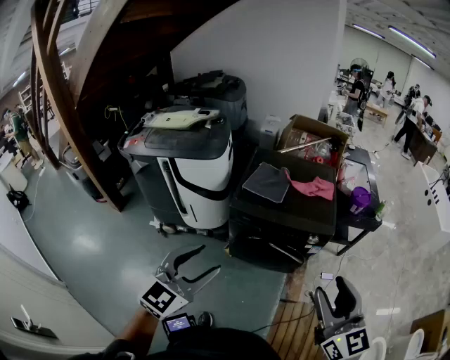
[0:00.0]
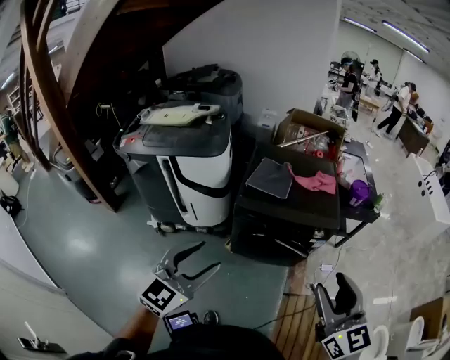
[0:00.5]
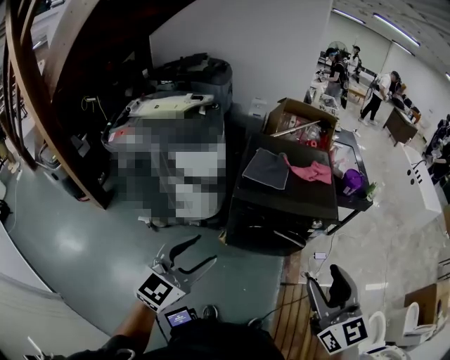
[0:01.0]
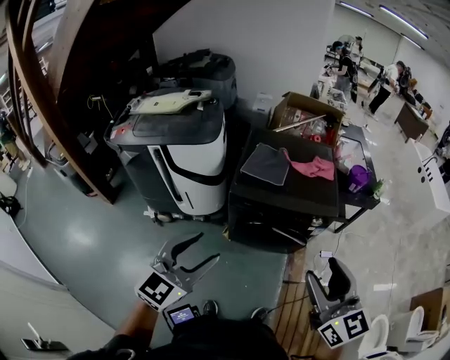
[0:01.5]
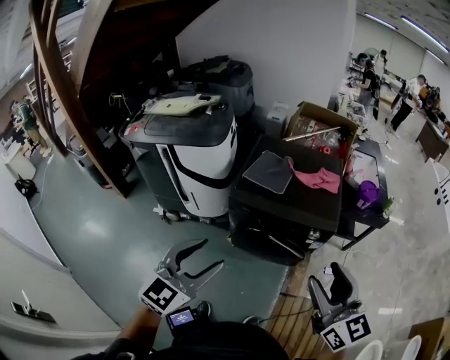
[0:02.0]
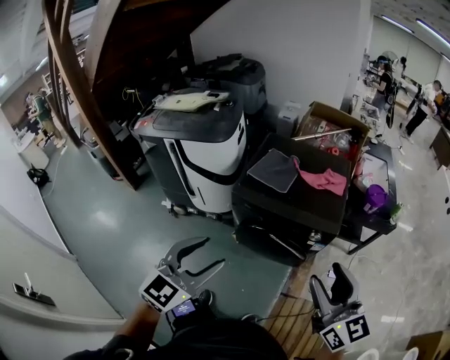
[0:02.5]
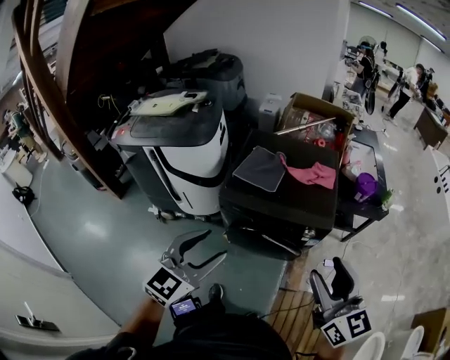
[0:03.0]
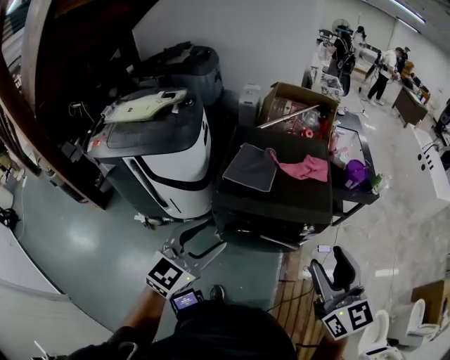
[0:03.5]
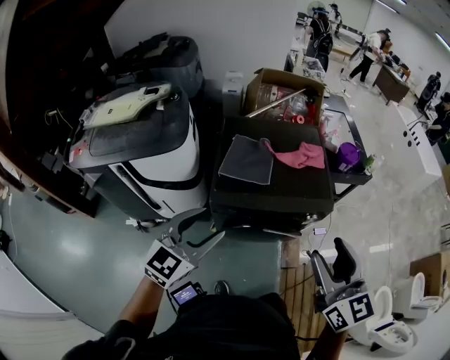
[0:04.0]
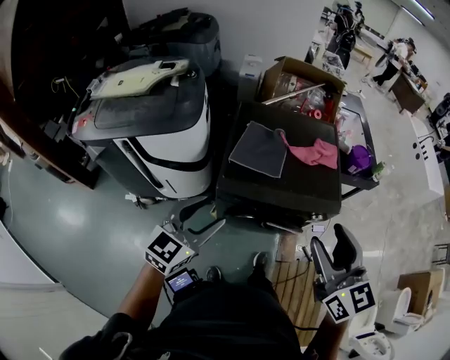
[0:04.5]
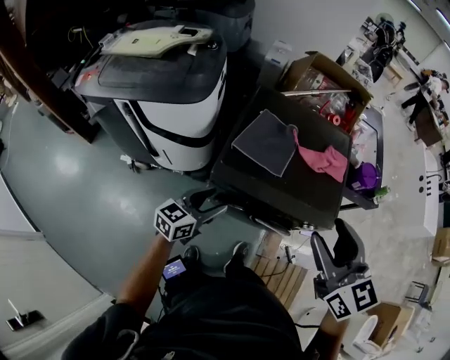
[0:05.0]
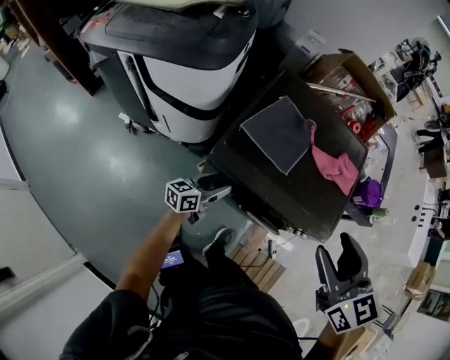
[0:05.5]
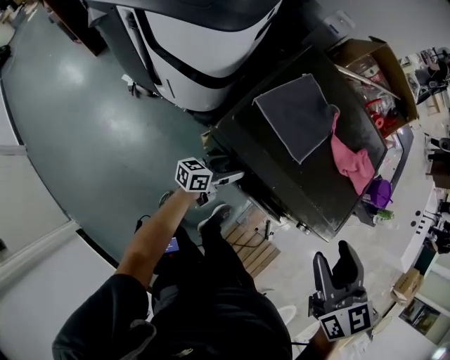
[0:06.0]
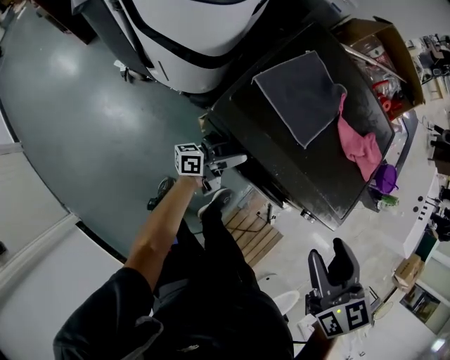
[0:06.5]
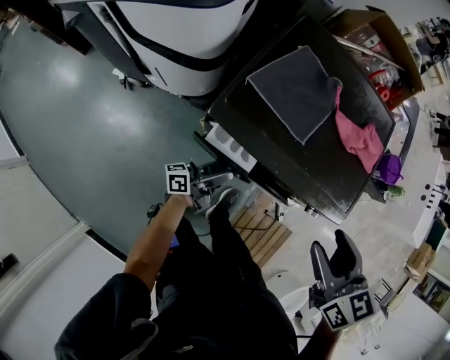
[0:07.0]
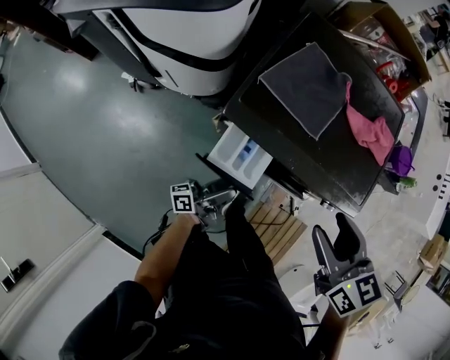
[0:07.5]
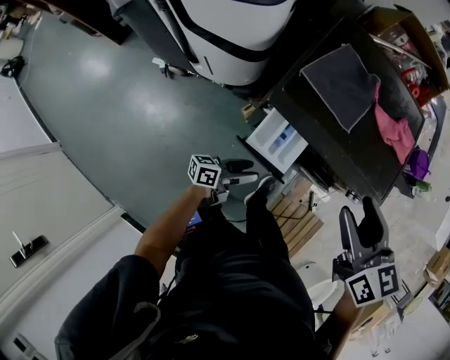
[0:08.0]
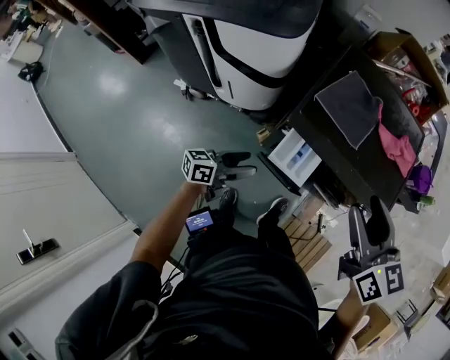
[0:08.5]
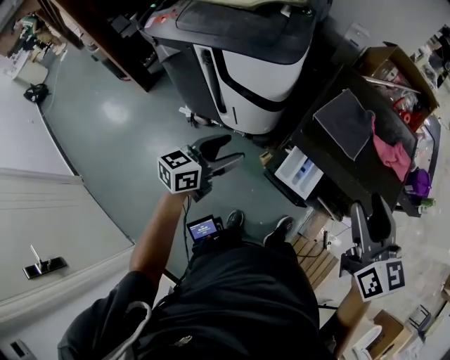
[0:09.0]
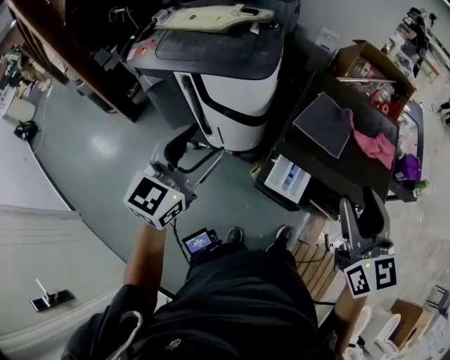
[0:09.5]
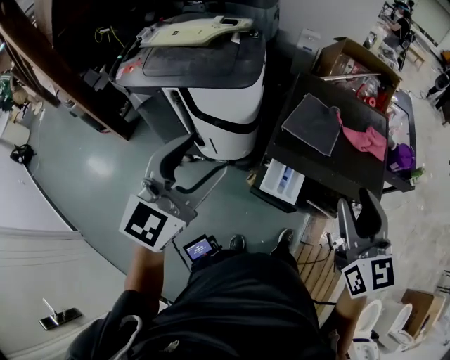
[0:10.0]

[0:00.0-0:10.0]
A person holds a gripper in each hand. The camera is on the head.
0:00.0 to 0:02.0: The right gripper shifts about 5 cm forward, and travels to the left and back again, about 15 cm each way, while the left gripper travels to the left and back again, some 10 cm each way.
0:02.0 to 0:04.0: The right gripper goes some 15 cm forward and to the left. The left gripper moves forward, approximately 20 cm.
0:04.0 to 0:06.0: The left gripper heads downward, covering about 40 cm, and rolls counterclockwise, seen from behind, by about 60 degrees, while the right gripper is displaced forward and downward by approximately 25 cm, and rotates roughly 40 degrees.
0:06.0 to 0:08.0: The left gripper is displaced backward by about 15 cm; the right gripper shifts about 10 cm to the left.
0:08.0 to 0:10.0: The left gripper heads upward, covering roughly 50 cm, and rolls clockwise, seen from behind, by approximately 80 degrees; the right gripper travels upward and backward by about 15 cm, and swivels about 30 degrees.

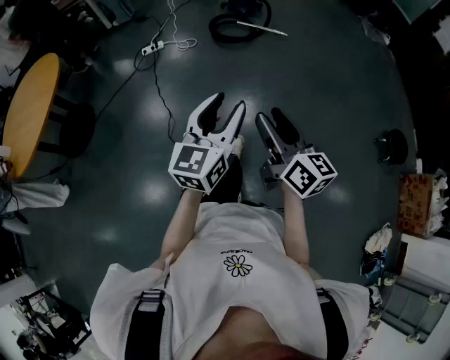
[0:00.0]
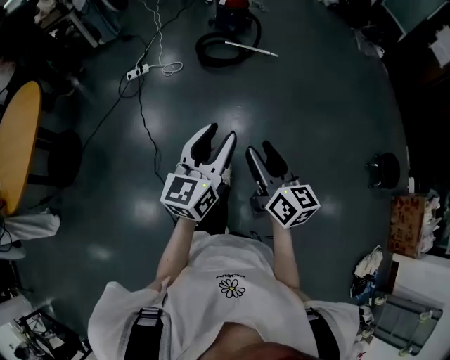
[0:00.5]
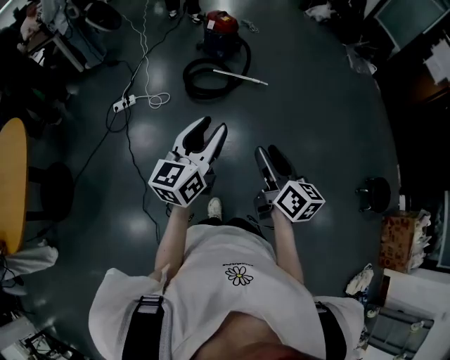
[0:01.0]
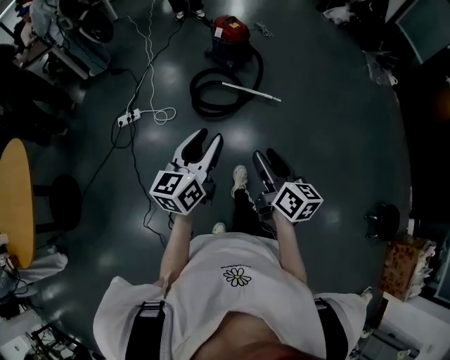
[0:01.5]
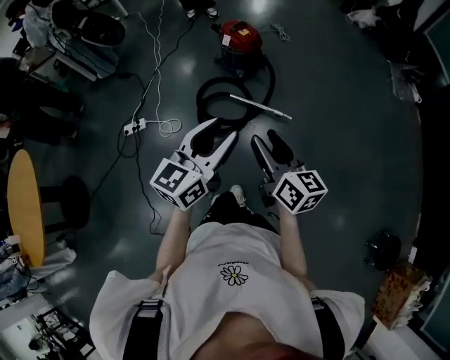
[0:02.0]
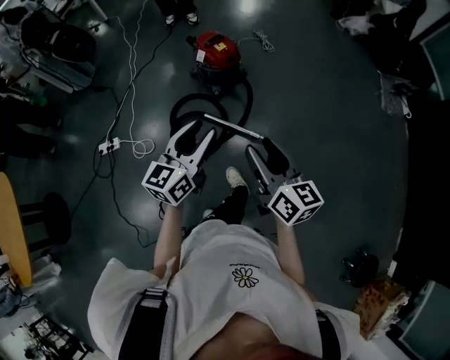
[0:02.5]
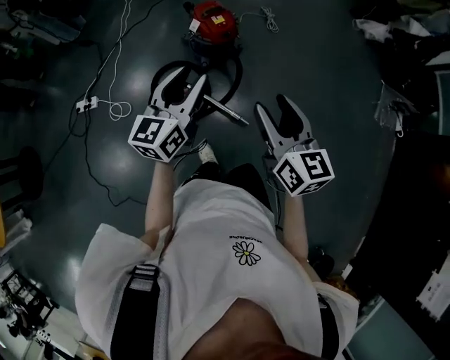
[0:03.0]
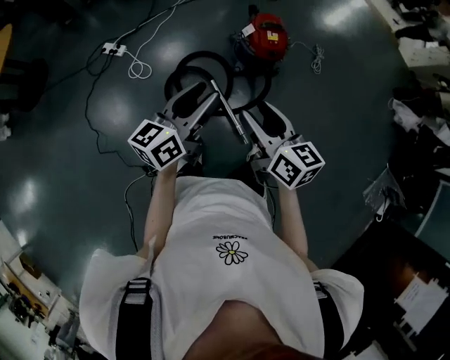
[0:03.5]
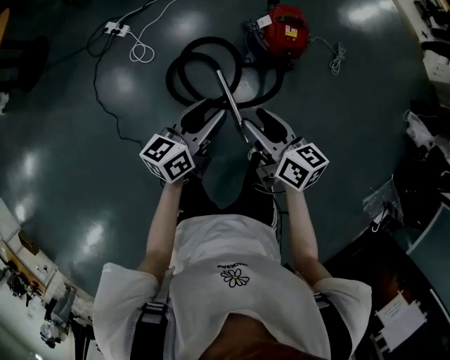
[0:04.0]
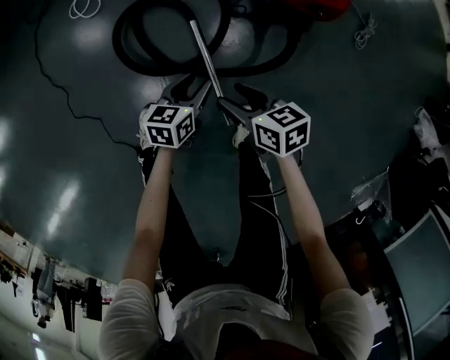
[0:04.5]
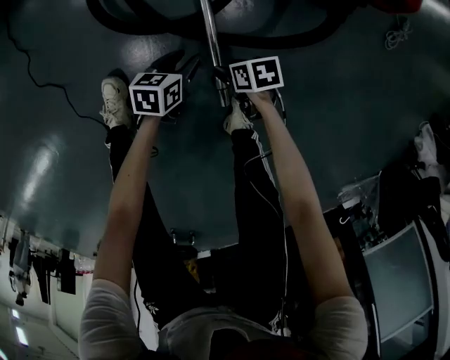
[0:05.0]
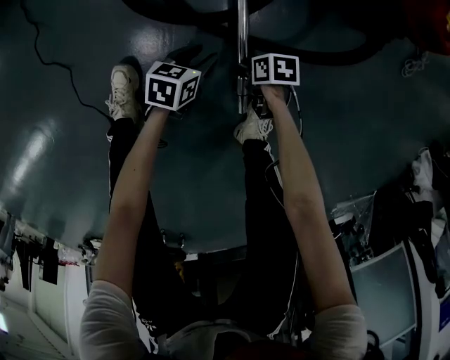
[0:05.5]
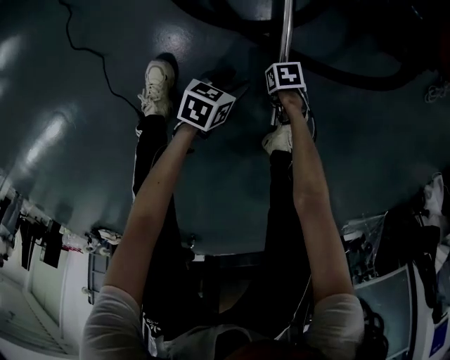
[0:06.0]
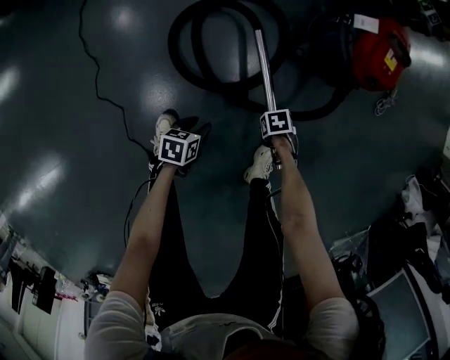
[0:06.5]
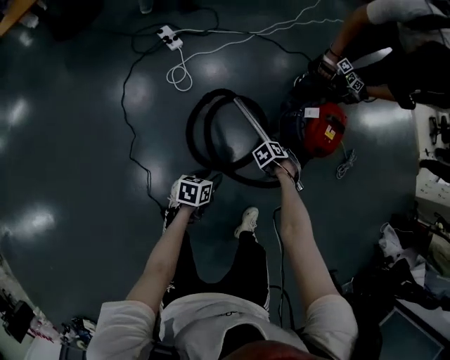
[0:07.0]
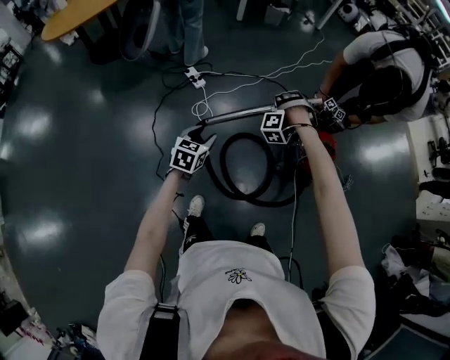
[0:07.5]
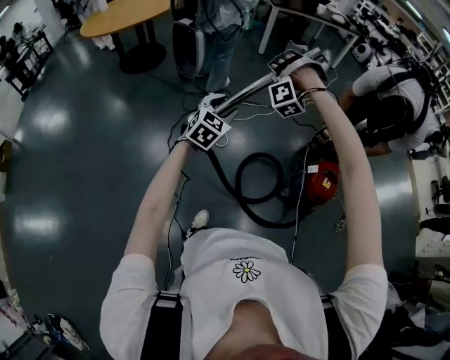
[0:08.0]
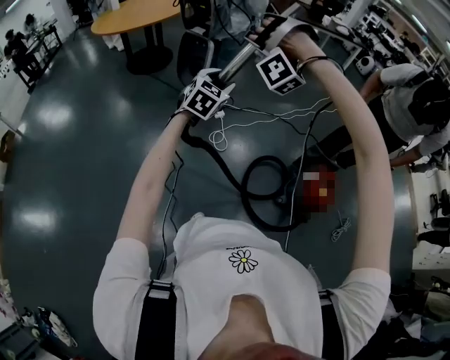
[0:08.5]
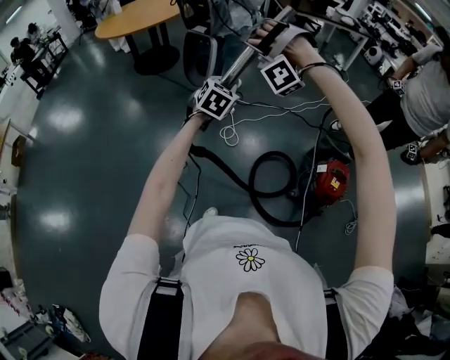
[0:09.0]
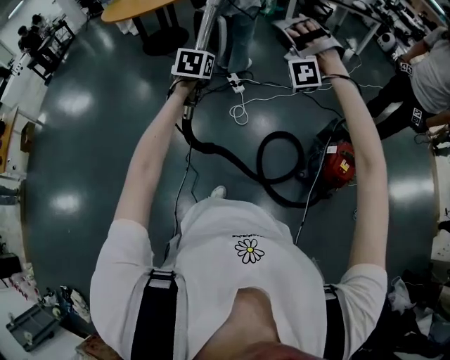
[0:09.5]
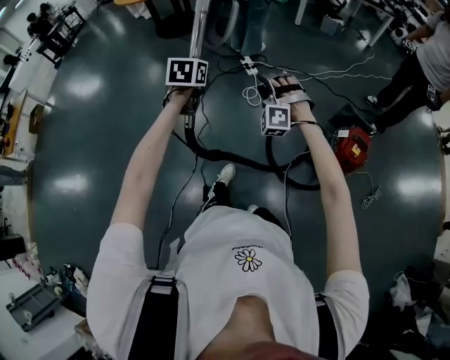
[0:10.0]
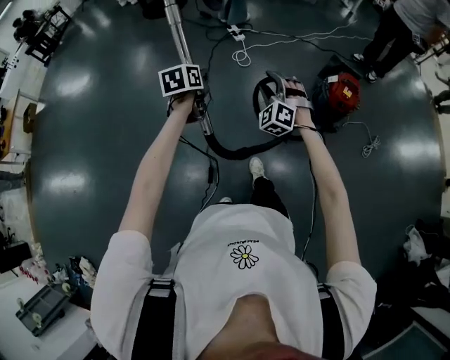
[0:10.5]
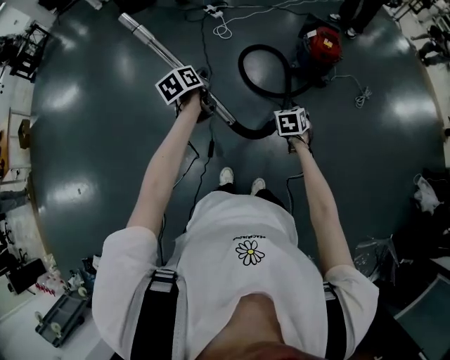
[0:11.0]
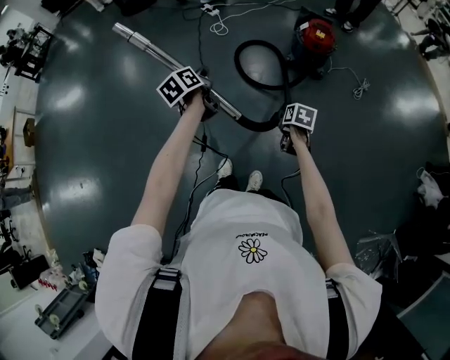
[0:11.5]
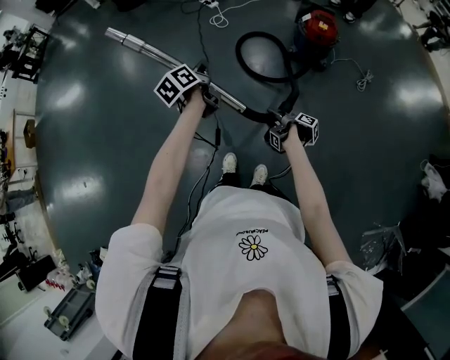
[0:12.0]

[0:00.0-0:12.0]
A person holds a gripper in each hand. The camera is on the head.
0:00.0 to 0:02.0: Both grippers are carried forward, about 90 cm.
0:02.0 to 0:04.0: The right gripper ends up approximately 40 cm from where it was, and changes its angle by approximately 60 degrees; the left gripper moves roughly 40 cm, and turns by approximately 50 degrees.
0:04.0 to 0:06.0: The grippers both shift downward by roughly 80 cm. The left gripper points its fingers roughly 40 degrees further downward. The right gripper points its fingers approximately 50 degrees further downward.
0:06.0 to 0:08.0: The grippers both shift upward by approximately 1 m. The left gripper turns by approximately 70 degrees; the right gripper tilts its fingers roughly 40 degrees upward.
0:08.0 to 0:10.0: The right gripper moves some 30 cm, and rotates approximately 50 degrees, while the left gripper travels upward and back again, about 10 cm each way, rotates approximately 40 degrees, and closes up.
0:10.0 to 0:12.0: The two grippers travel together, backward, approximately 60 cm. The right gripper rotates around the line of its fingers by approximately 160 degrees, counterclockwise from behind. Meanwhile the left gripper twists approximately 40 degrees counterclockwise, seen from behind.

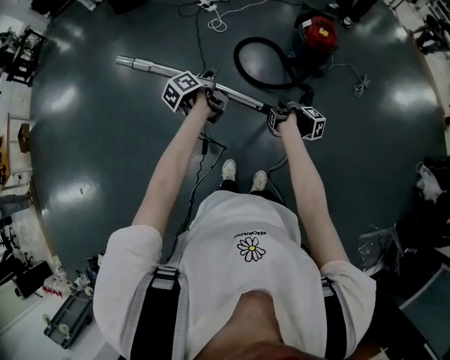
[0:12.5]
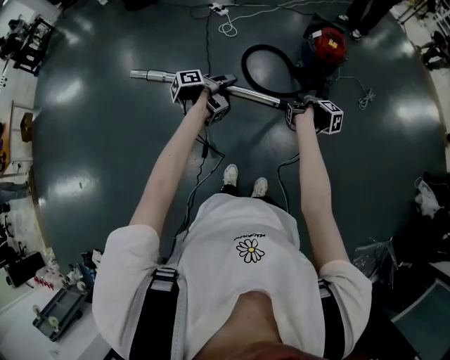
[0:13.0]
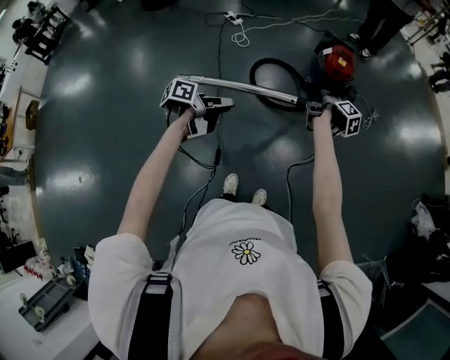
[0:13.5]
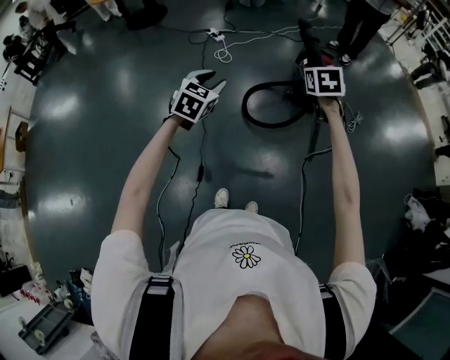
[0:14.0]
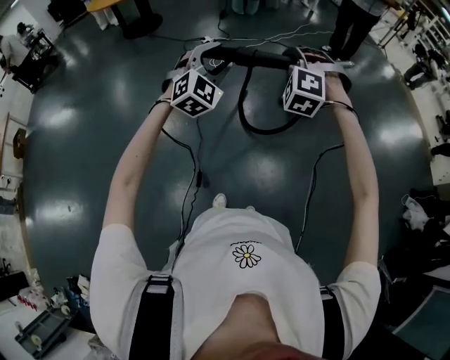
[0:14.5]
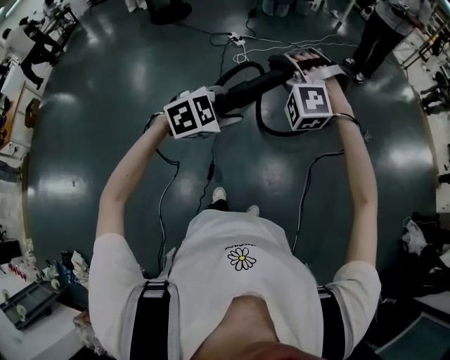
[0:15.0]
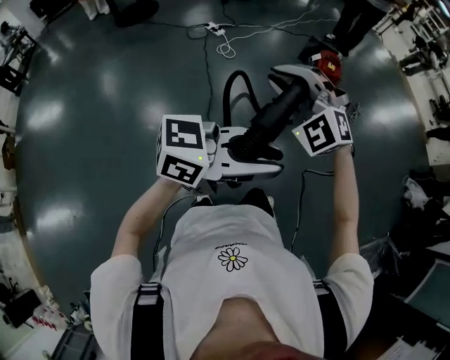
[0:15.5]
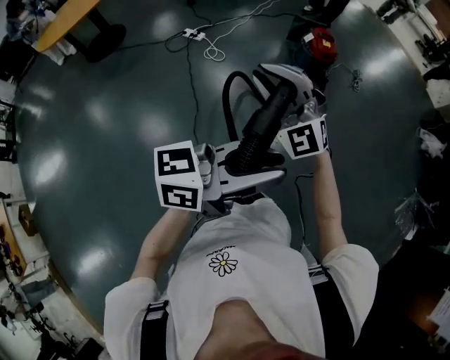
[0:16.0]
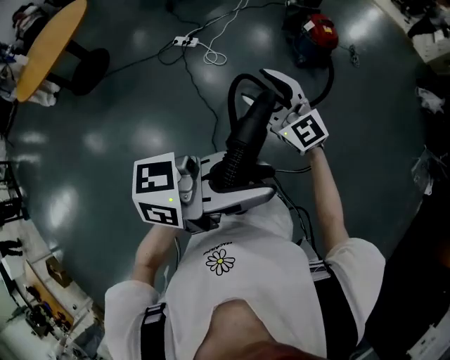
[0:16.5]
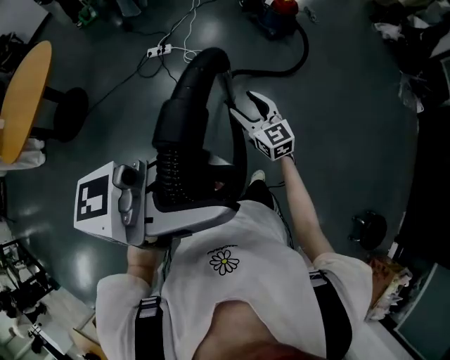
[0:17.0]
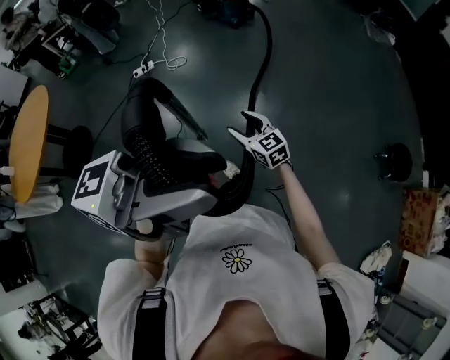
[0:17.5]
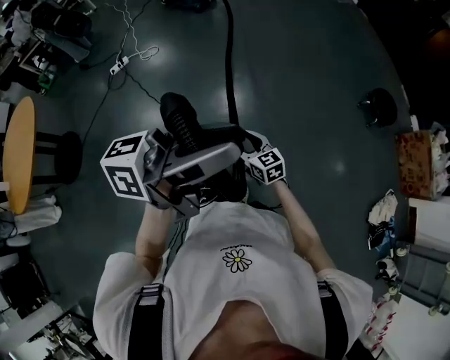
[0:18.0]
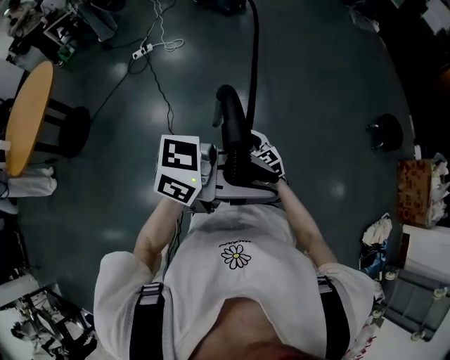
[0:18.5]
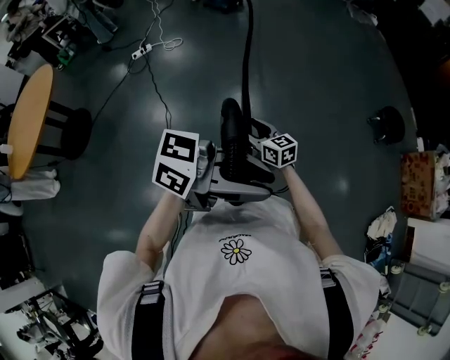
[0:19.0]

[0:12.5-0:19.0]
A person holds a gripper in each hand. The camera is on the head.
0:12.5 to 0:14.5: The grippers both shift upward by roughly 30 cm. The left gripper twists some 120 degrees clockwise, seen from behind, and opens. Meanwhile the right gripper twists some 160 degrees clockwise, seen from behind.
0:14.5 to 0:17.0: The two grippers travel together, about 80 cm. The left gripper points its fingers about 30 degrees further upward; the right gripper twists roughly 90 degrees clockwise, seen from behind, and opens.
0:17.0 to 0:19.0: The pair of grippers is taken approximately 60 cm. The left gripper swivels some 50 degrees. The right gripper swivels roughly 30 degrees.
